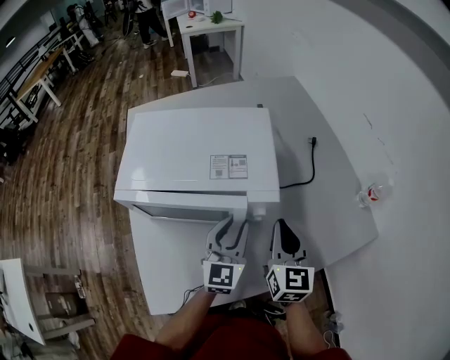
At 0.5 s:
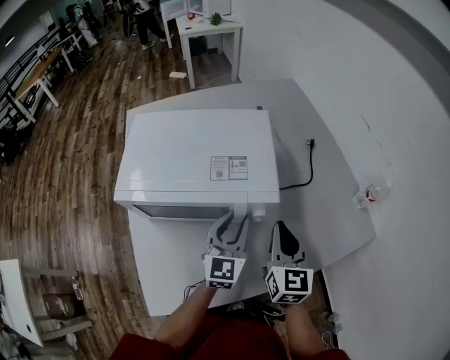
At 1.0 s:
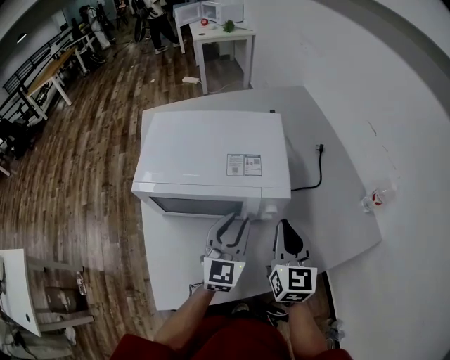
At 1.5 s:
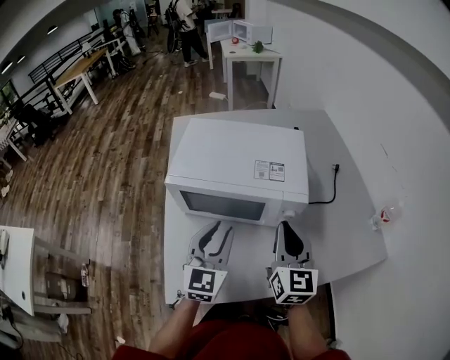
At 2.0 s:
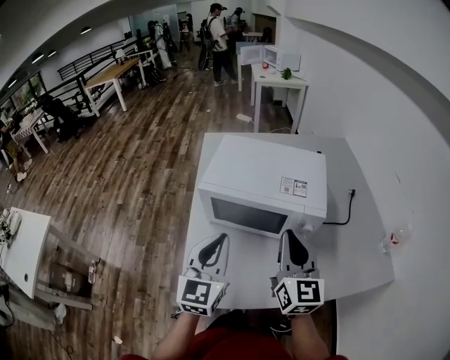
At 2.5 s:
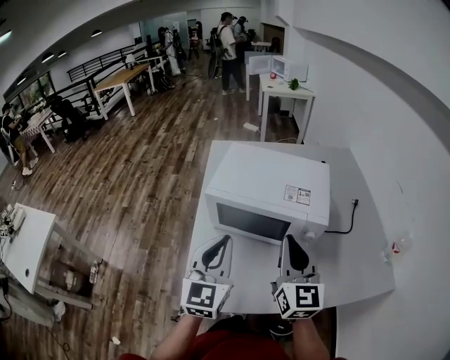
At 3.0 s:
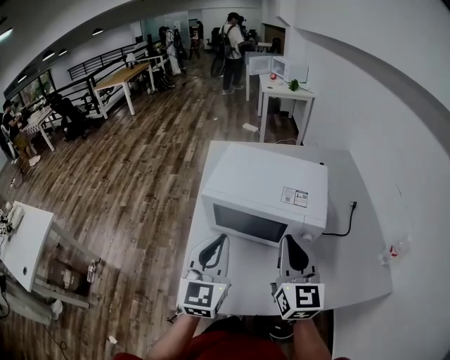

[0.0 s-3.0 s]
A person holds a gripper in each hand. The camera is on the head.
0.0 to 1.5 s: The left gripper travels to the left, backward and upward by roughly 15 cm; the right gripper goes some 10 cm to the left and upward.
1.5 to 3.0 s: Both grippers move upward and to the left, about 10 cm. The left gripper closes.

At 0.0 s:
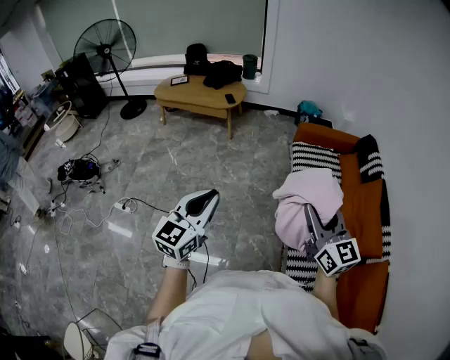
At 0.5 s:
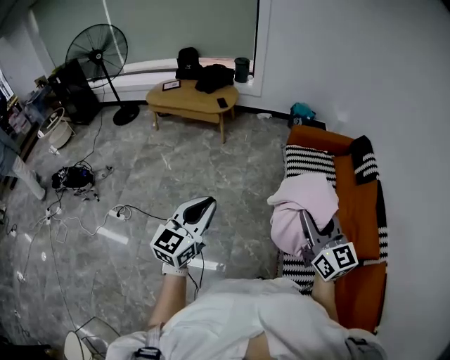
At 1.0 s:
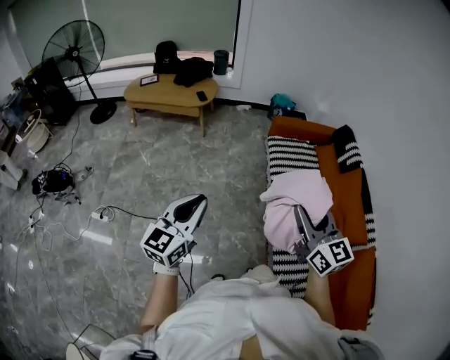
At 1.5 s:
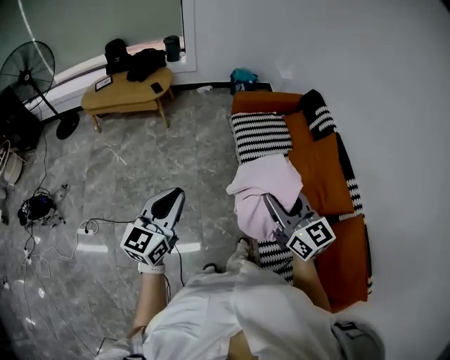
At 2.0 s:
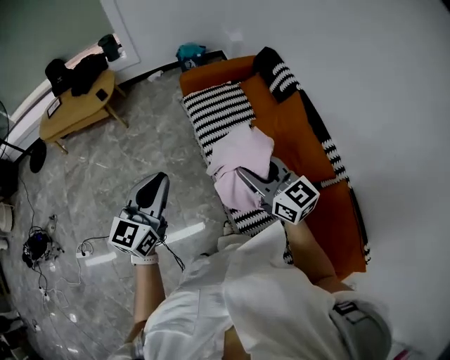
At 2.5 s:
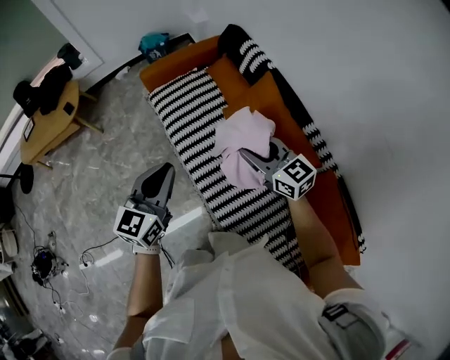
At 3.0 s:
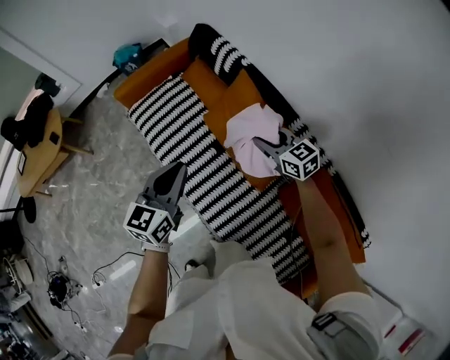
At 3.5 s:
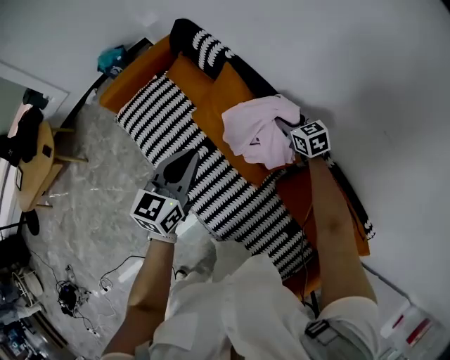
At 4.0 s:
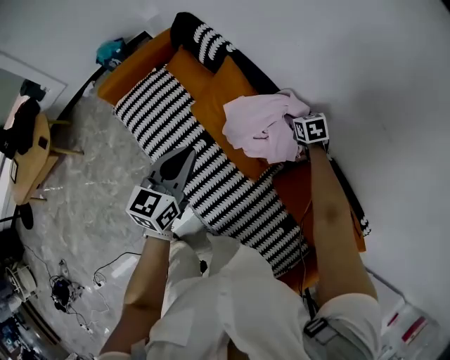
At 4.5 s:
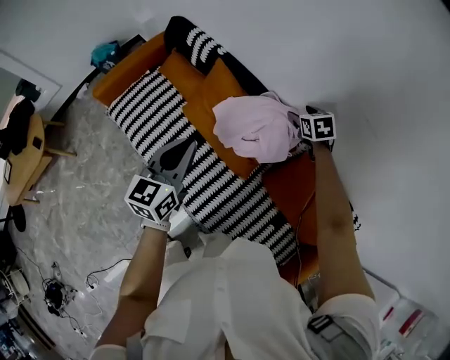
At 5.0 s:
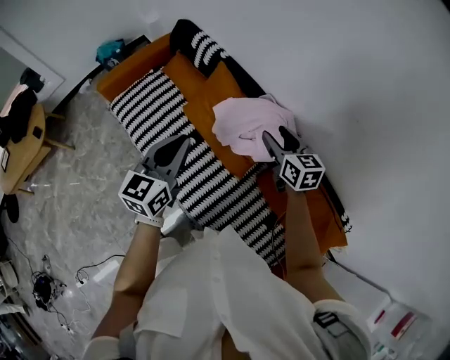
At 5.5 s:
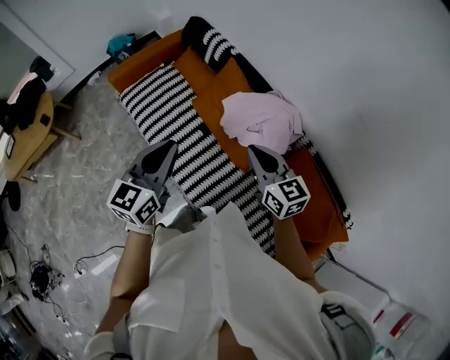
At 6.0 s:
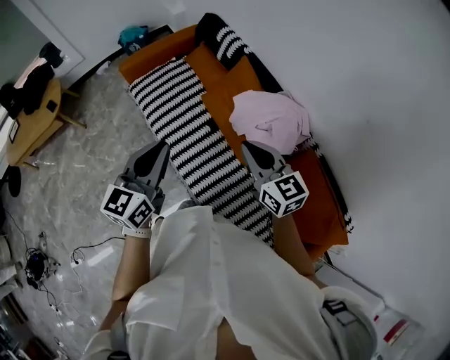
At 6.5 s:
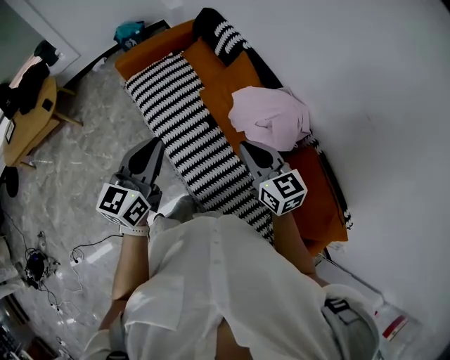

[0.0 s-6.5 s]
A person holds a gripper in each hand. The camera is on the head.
0.0 to 2.0 s: The right gripper moves to the right, forward and downward, roughly 20 cm; the left gripper moves to the right and forward, roughly 30 cm, and changes its angle by approximately 20 degrees.
2.0 to 4.5 s: The two grippers travel together, approximately 50 cm. The right gripper tilts its fingers approximately 50 degrees downward, and opens. Meanwhile the left gripper changes its angle by approximately 30 degrees.
4.5 to 6.5 s: The left gripper travels to the left, backward and upward by roughly 20 cm, while the right gripper goes about 40 cm to the left, backward and upward, tips its fingers upward by roughly 40 degrees, and closes.

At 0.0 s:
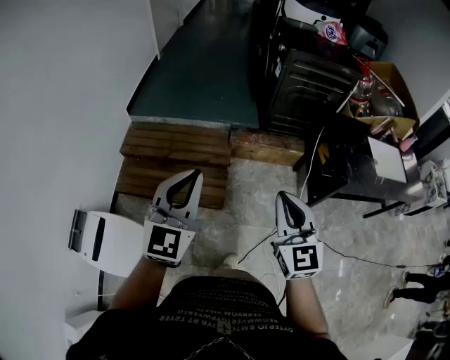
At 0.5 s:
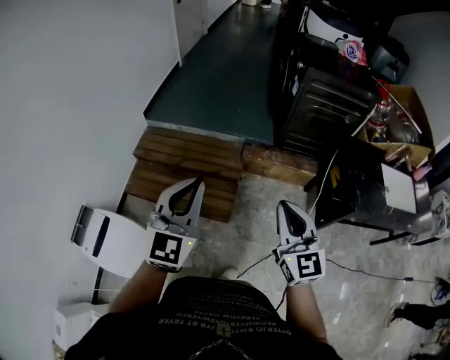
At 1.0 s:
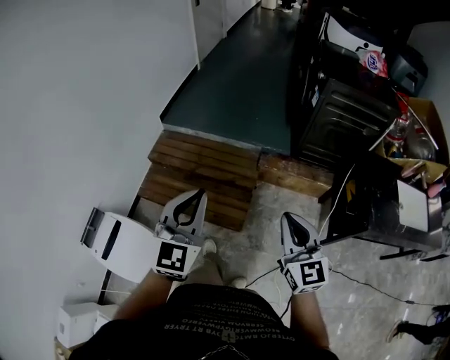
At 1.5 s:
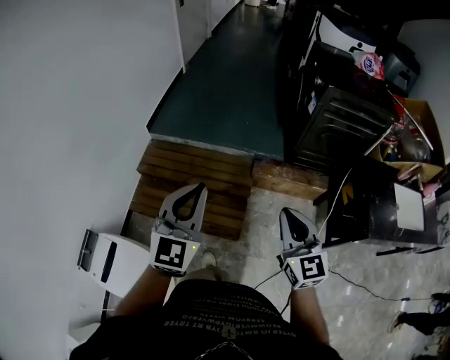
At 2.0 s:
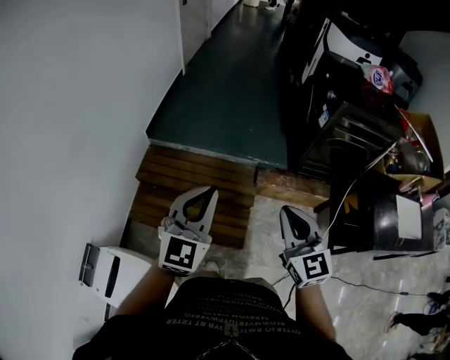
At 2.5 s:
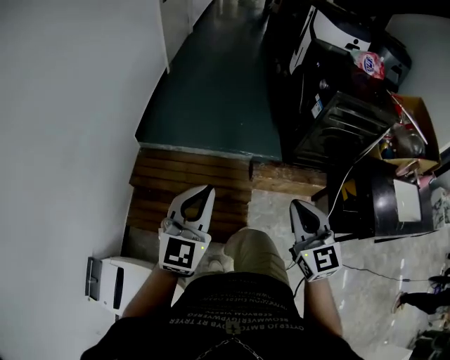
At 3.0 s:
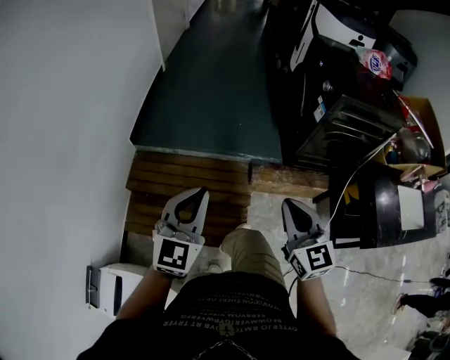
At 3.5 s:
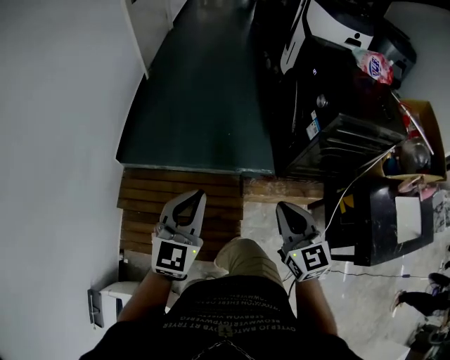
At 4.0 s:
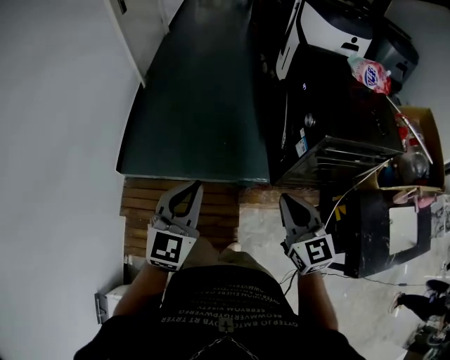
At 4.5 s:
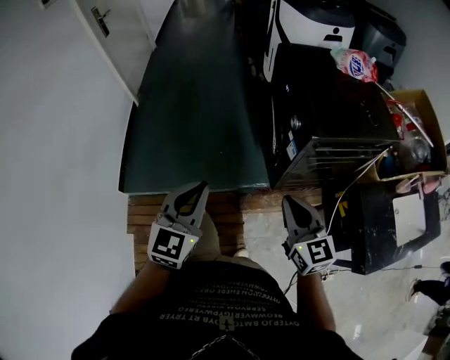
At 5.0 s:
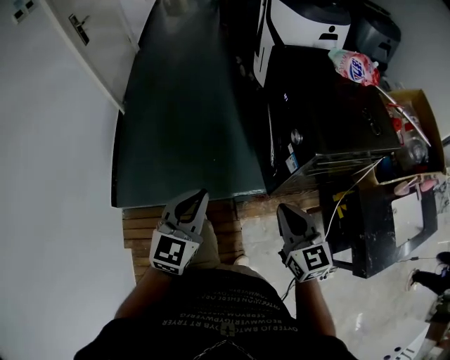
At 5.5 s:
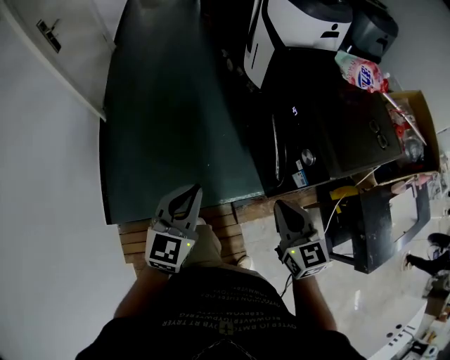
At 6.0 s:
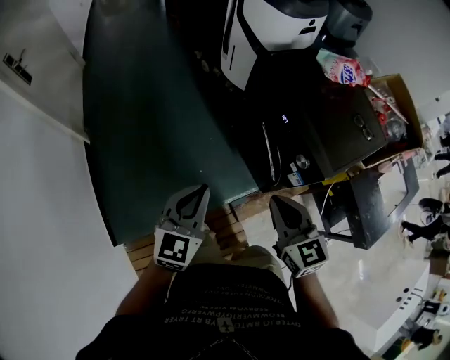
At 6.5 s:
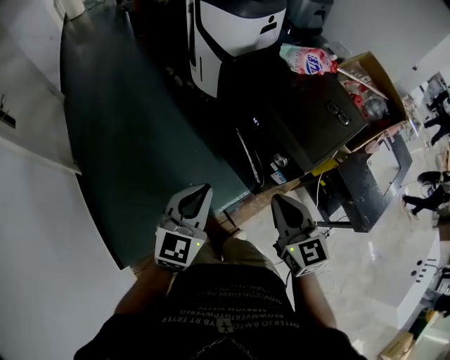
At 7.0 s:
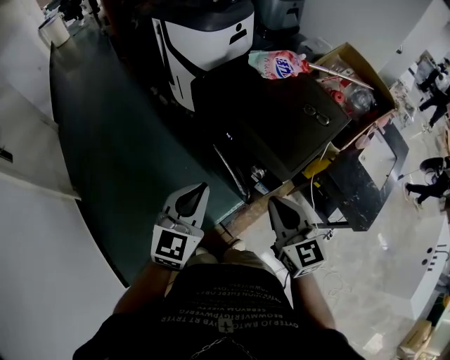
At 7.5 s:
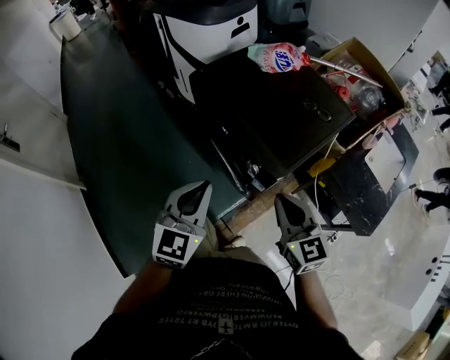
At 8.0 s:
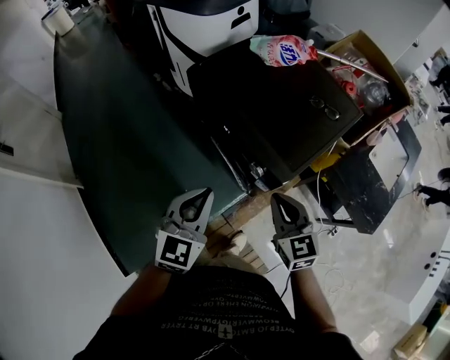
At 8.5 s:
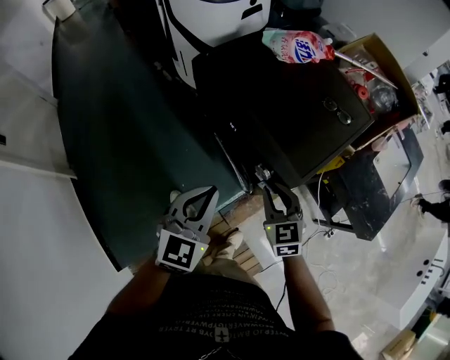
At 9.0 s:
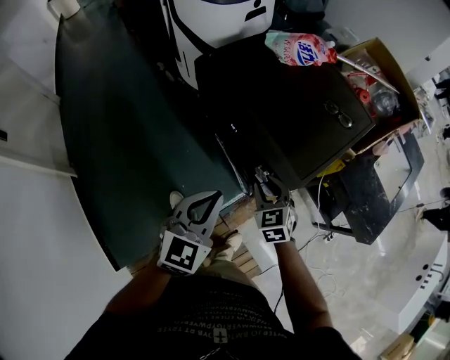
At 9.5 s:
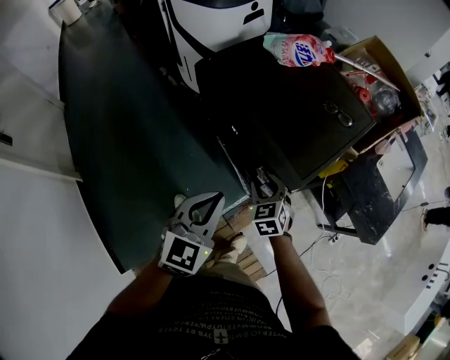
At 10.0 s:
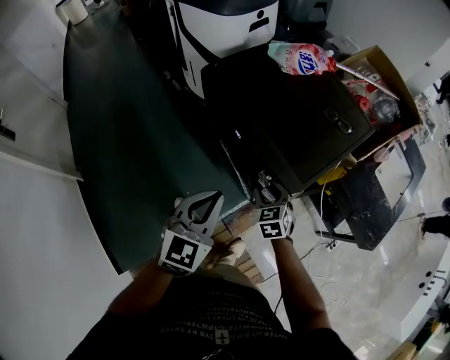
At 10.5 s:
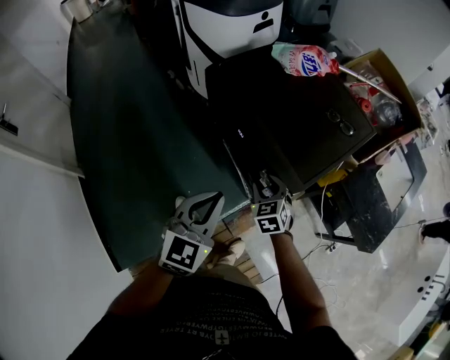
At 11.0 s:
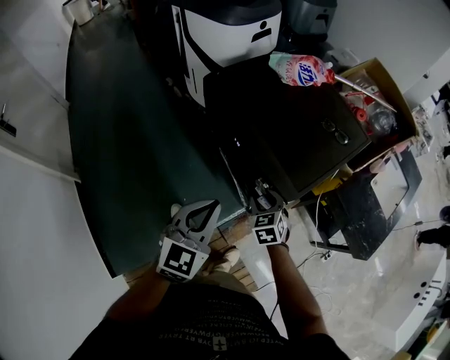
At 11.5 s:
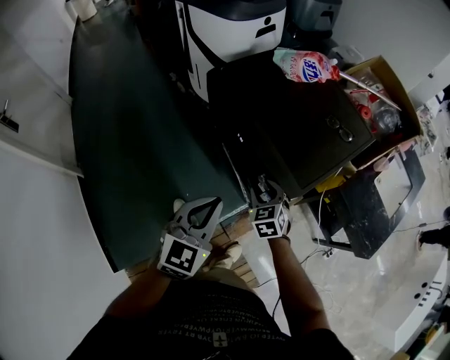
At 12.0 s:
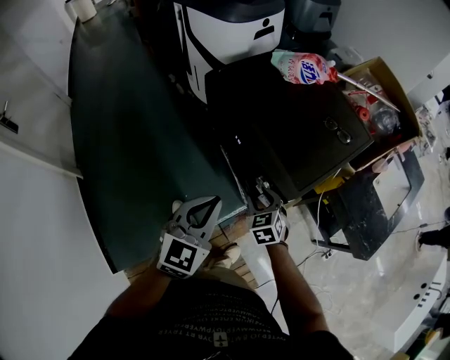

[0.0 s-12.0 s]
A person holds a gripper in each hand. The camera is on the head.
0.0 to 2.0 s: The grippers both shift forward and to the left by approximately 30 cm.
2.0 to 4.0 s: The two grippers go about 40 cm forward.
4.0 to 6.0 s: The right gripper ends up roughly 35 cm from where it was, and changes its angle by roughly 30 degrees. The left gripper ends up some 40 cm from where it was, and turns by roughly 30 degrees.
6.0 to 8.0 s: The grippers both shift to the right and forward by about 25 cm.
8.0 to 10.0 s: The right gripper shifts about 20 cm downward and forward, swivels approximately 20 degrees, and opens up.
10.0 to 12.0 s: There are only small adjustments of the grippers.

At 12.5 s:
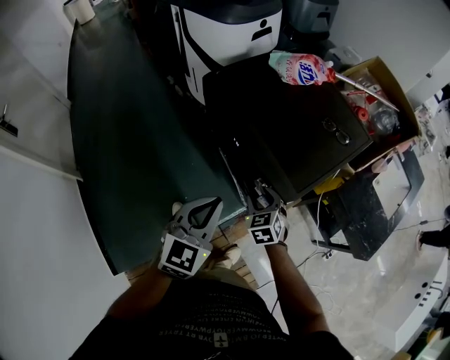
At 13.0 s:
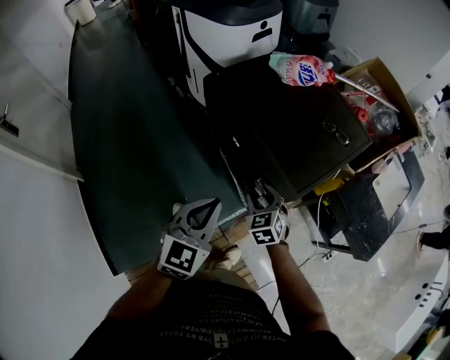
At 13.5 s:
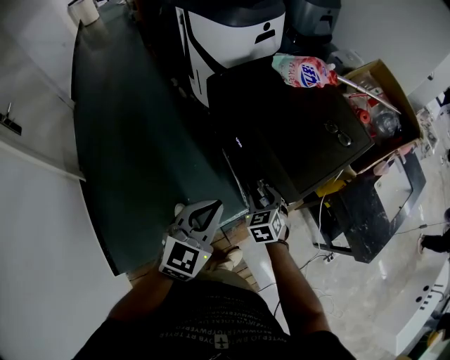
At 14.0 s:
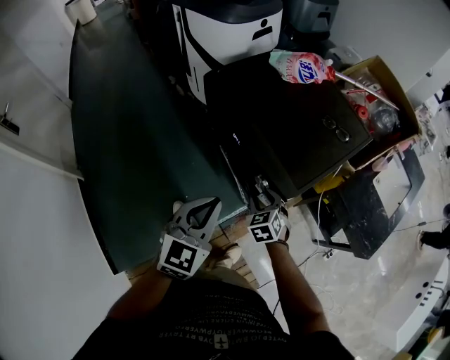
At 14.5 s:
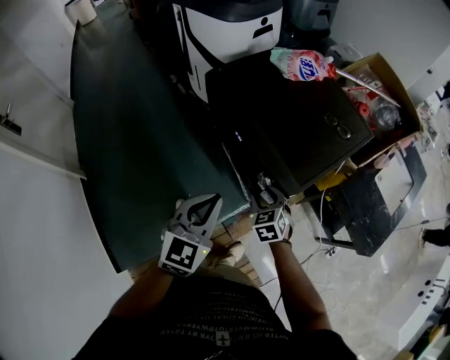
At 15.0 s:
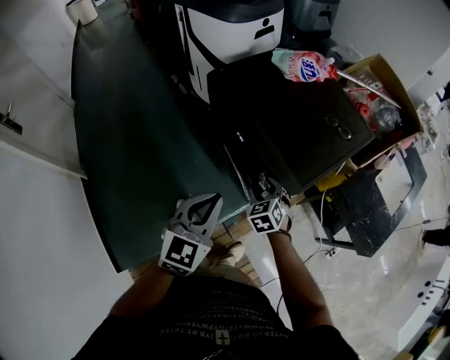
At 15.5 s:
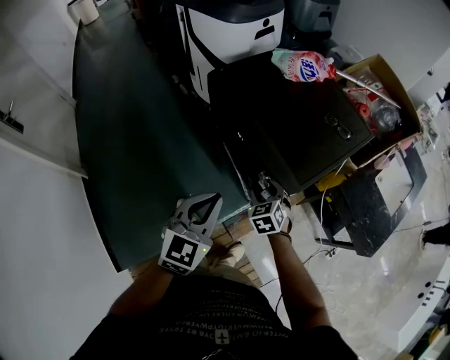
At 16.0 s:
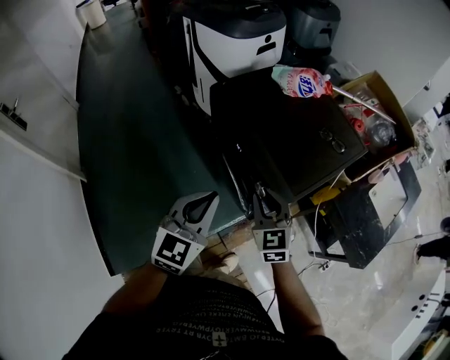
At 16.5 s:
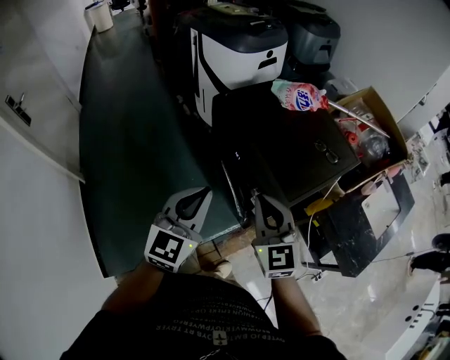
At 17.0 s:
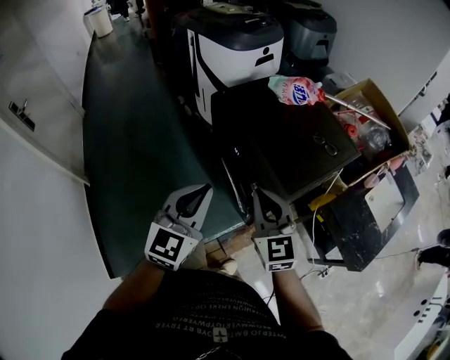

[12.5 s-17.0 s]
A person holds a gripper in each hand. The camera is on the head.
12.5 to 14.5 s: There are only small adjustments of the grippers.
14.5 to 17.0 s: The left gripper heads upward, covering some 10 cm. Meanwhile the right gripper travels upward by about 25 cm, tips its fingers upward by approximately 40 degrees, and closes.
